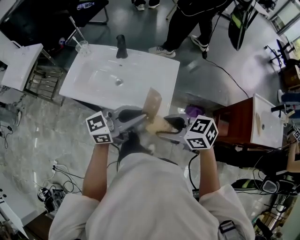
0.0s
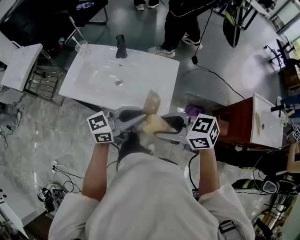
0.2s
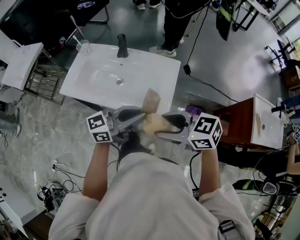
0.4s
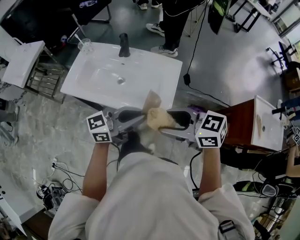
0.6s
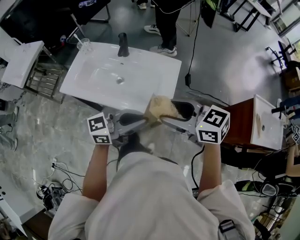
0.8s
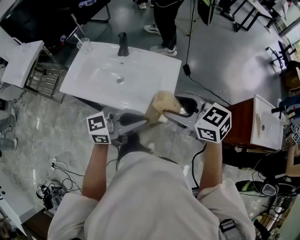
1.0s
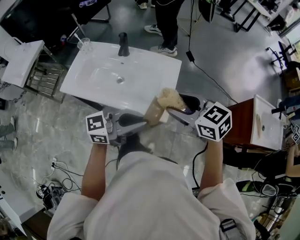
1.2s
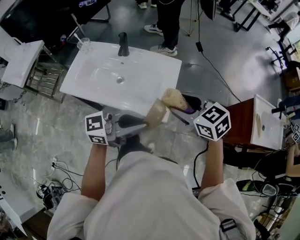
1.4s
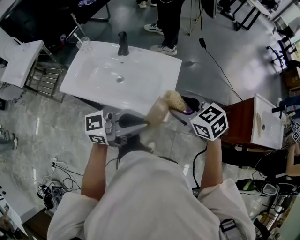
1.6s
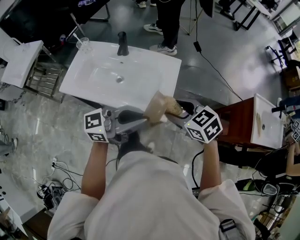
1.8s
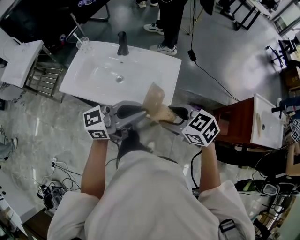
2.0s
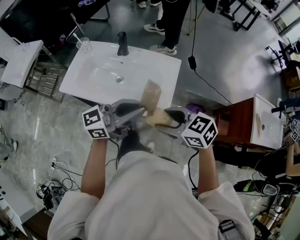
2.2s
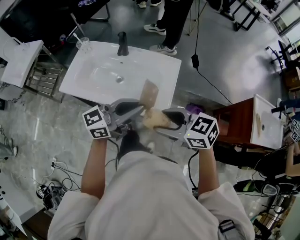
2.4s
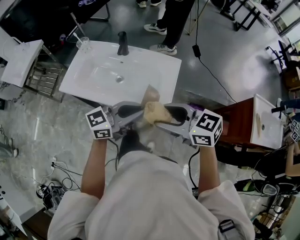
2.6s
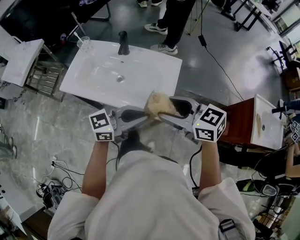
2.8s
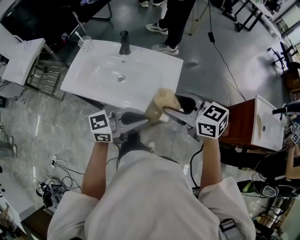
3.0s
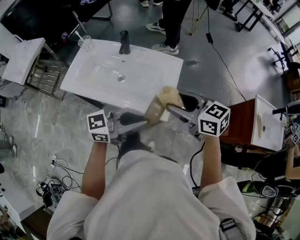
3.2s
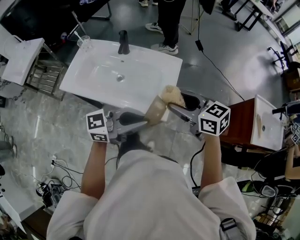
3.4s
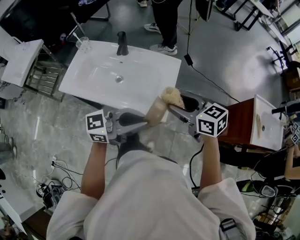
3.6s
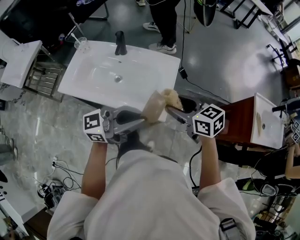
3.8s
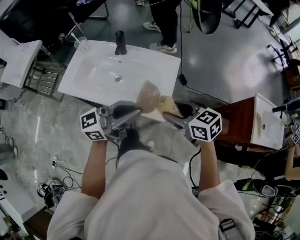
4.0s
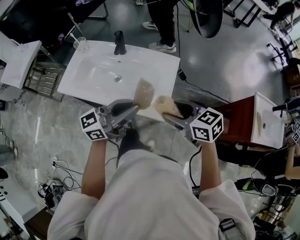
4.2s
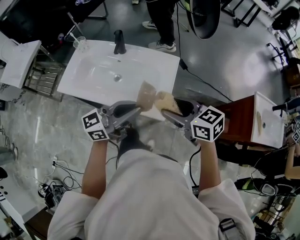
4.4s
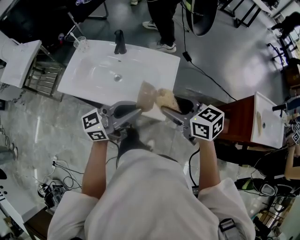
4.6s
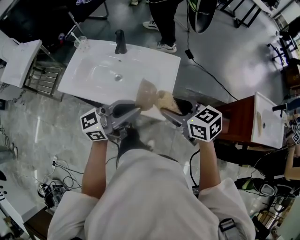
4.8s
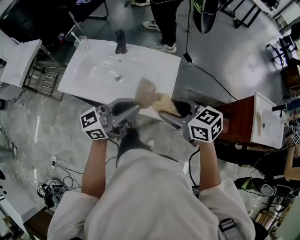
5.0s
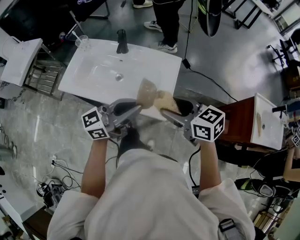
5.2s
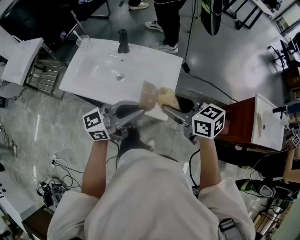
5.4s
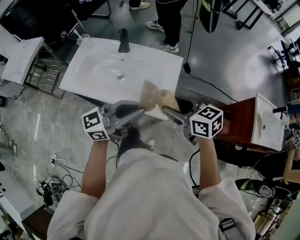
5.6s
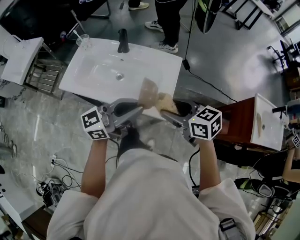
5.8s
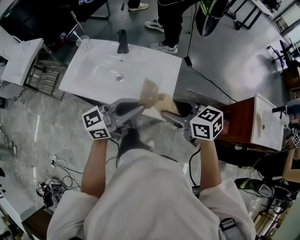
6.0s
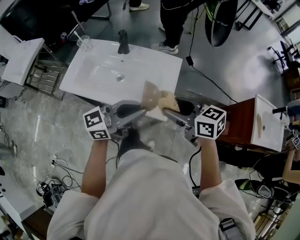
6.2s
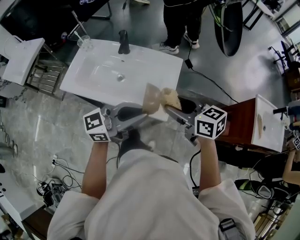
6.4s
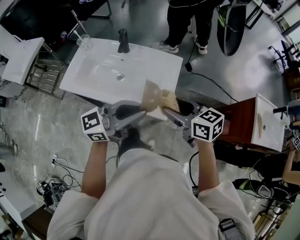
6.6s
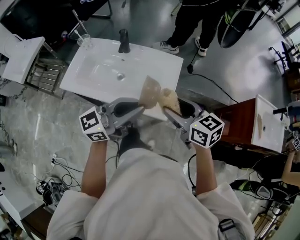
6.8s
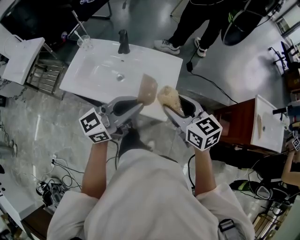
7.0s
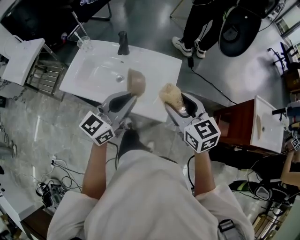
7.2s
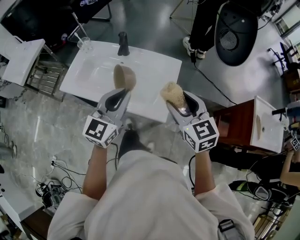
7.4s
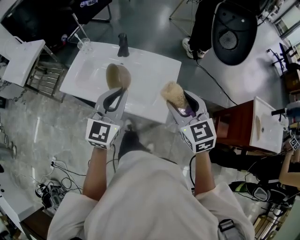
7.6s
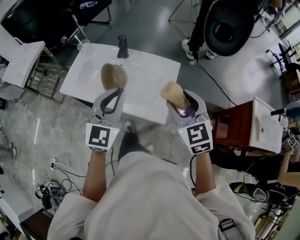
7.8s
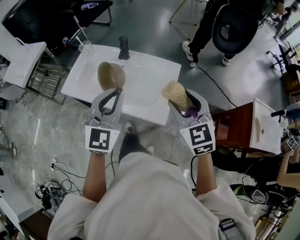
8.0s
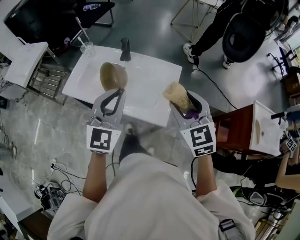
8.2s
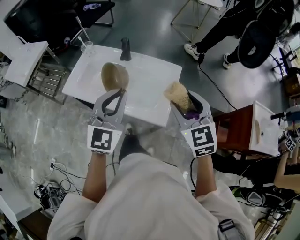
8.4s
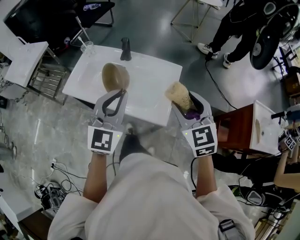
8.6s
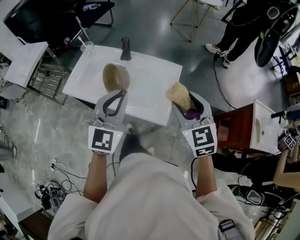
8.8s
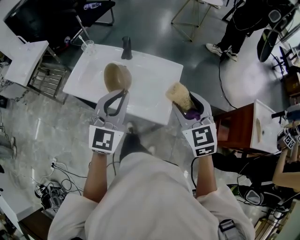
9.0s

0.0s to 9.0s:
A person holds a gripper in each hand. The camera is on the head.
0.0s to 1.6s: The right gripper shifts by approximately 10 cm, and turns by approximately 20 degrees.
1.6s to 3.0s: The right gripper changes its angle by about 20 degrees.
3.0s to 4.4s: The left gripper moves approximately 5 cm.
4.4s to 6.0s: The grippers stay close to where they were, moving slightly.
6.0s to 7.6s: The left gripper moves roughly 10 cm, and turns by roughly 60 degrees, while the right gripper ends up about 5 cm from where it was, and changes its angle by some 40 degrees.
7.6s to 9.0s: The grippers stay close to where they were, moving slightly.

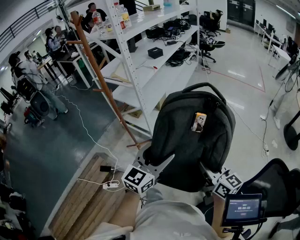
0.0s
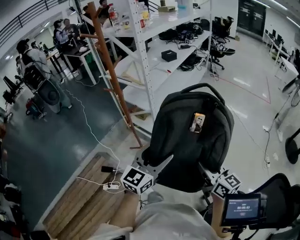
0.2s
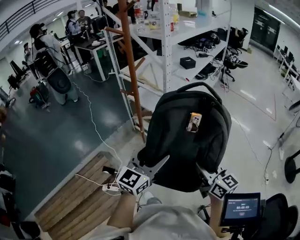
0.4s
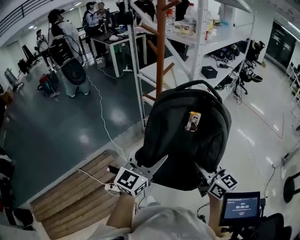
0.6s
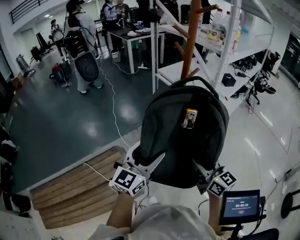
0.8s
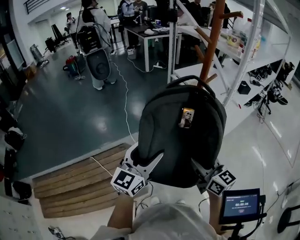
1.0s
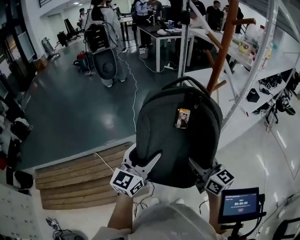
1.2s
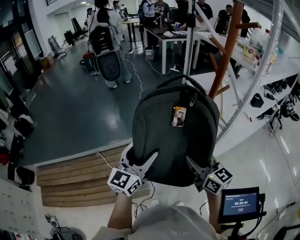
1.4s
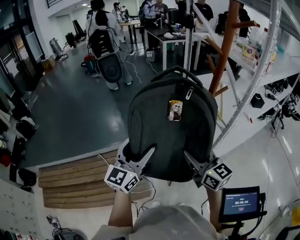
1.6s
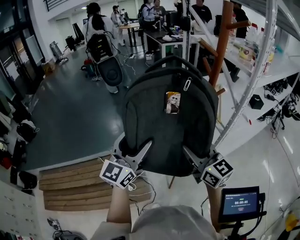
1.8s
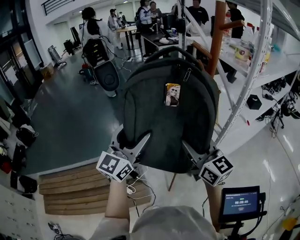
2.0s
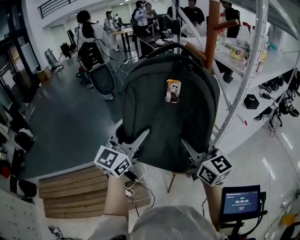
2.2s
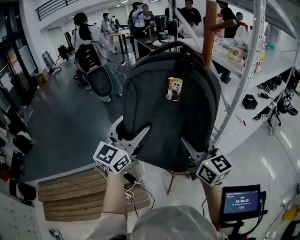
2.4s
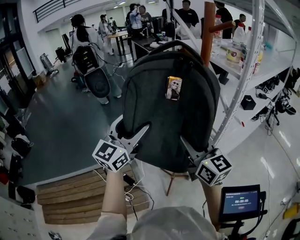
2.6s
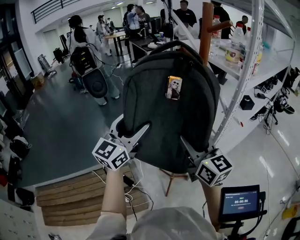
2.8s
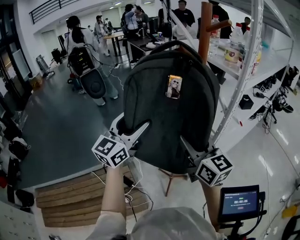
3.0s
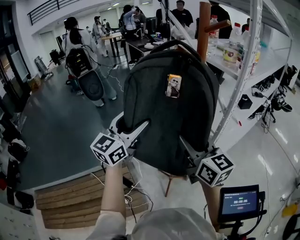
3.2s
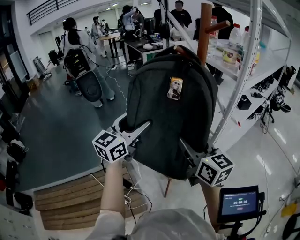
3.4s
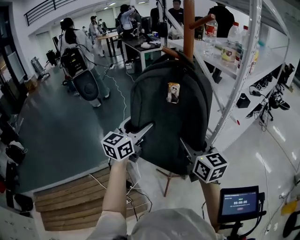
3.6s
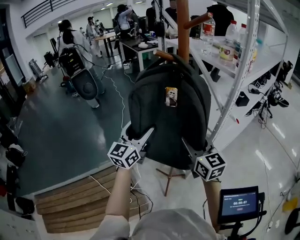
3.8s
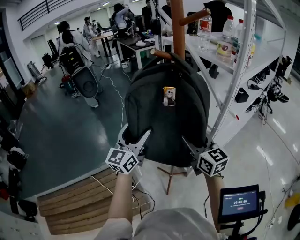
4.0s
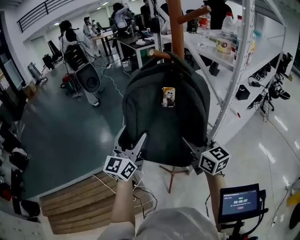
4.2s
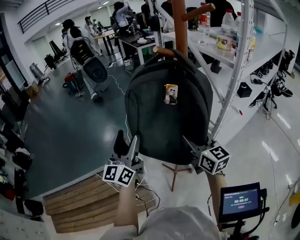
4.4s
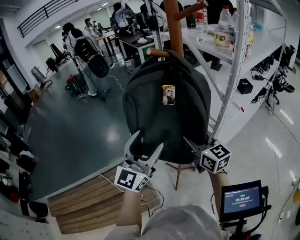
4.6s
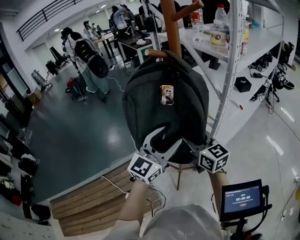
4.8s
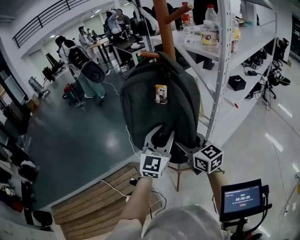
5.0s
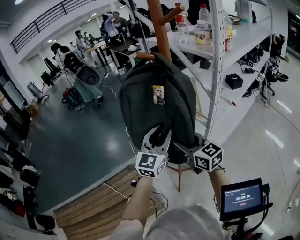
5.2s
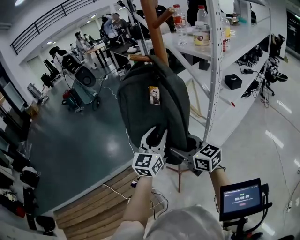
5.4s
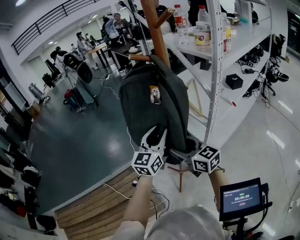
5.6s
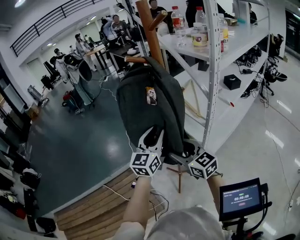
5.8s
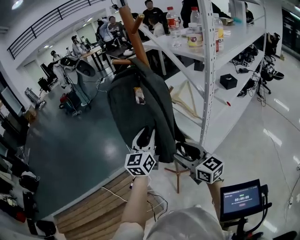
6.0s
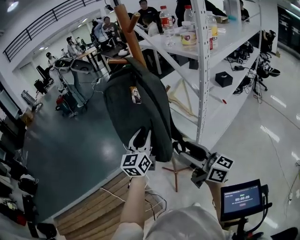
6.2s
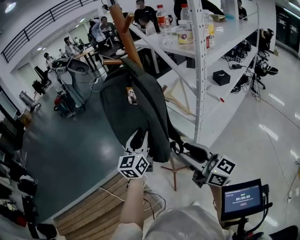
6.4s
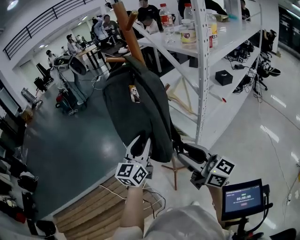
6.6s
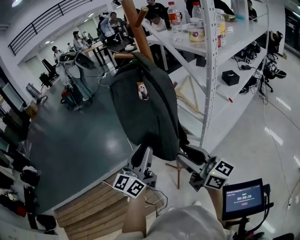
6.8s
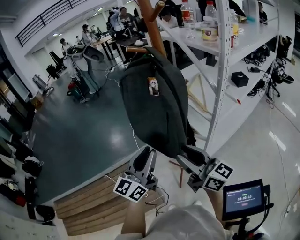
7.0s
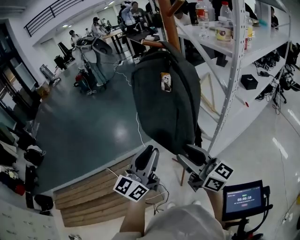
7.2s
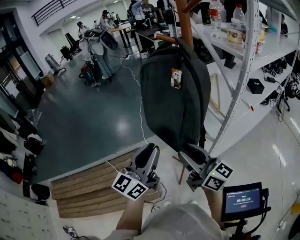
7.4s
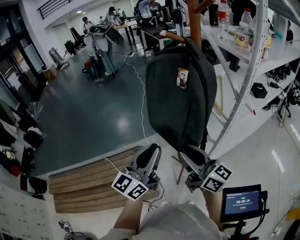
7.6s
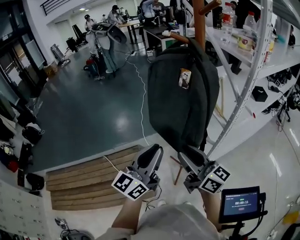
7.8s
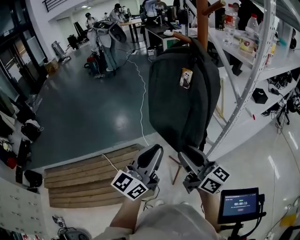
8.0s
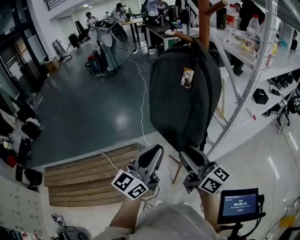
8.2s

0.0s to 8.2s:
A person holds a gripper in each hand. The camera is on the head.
0.0s to 1.6s: The two grippers travel together, some 50 cm. The right gripper turns by approximately 50 degrees; the left gripper turns by roughly 50 degrees.
1.6s to 3.2s: The right gripper heads upward and forward, covering approximately 10 cm, while the left gripper is displaced forward and upward by about 15 cm.
3.2s to 5.0s: The right gripper heads downward, covering approximately 10 cm. Meanwhile the left gripper shifts roughly 15 cm to the right and downward, and closes.
5.0s to 6.6s: The left gripper moves roughly 5 cm, and turns by about 20 degrees, while the right gripper goes about 10 cm backward, and rotates roughly 20 degrees.
6.6s to 8.2s: The right gripper goes approximately 10 cm to the left, while the left gripper heads backward and to the left, covering approximately 15 cm.

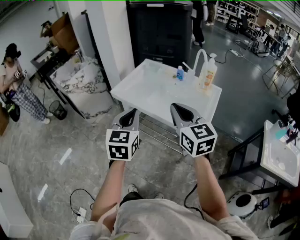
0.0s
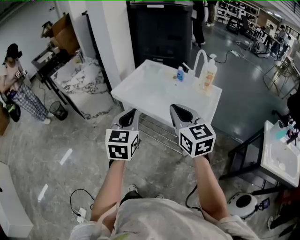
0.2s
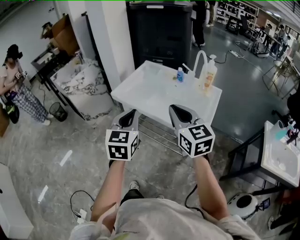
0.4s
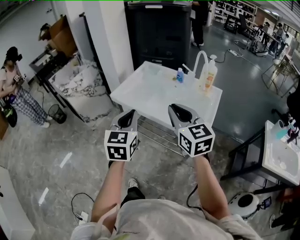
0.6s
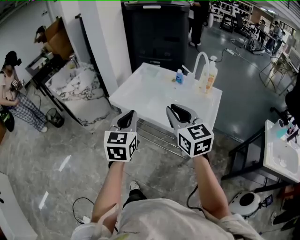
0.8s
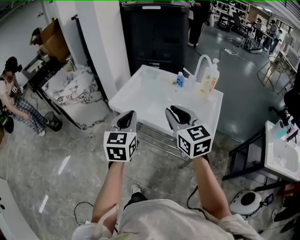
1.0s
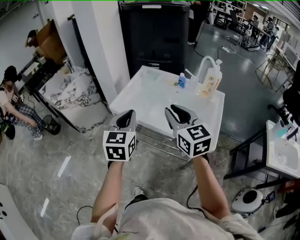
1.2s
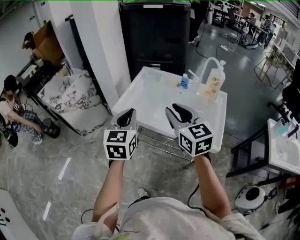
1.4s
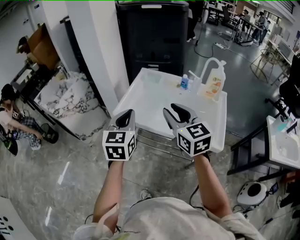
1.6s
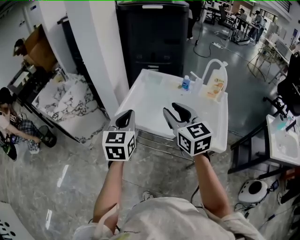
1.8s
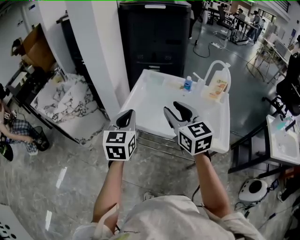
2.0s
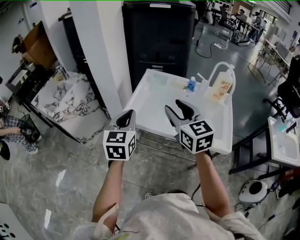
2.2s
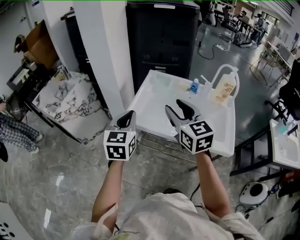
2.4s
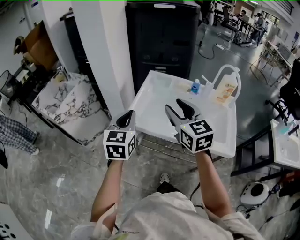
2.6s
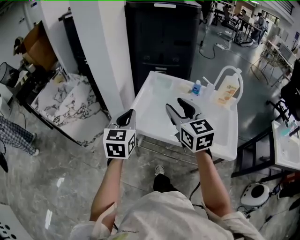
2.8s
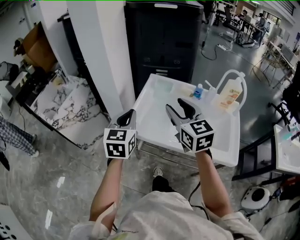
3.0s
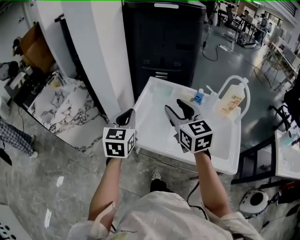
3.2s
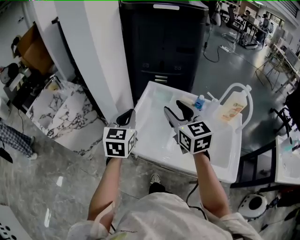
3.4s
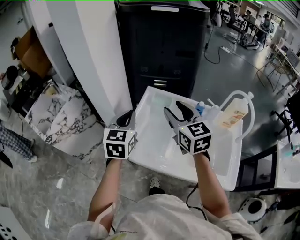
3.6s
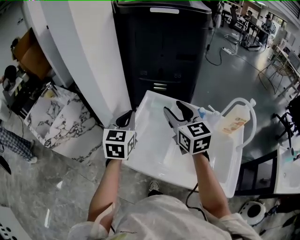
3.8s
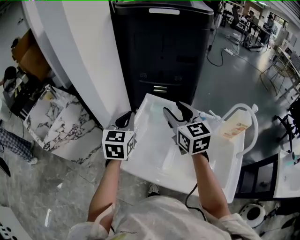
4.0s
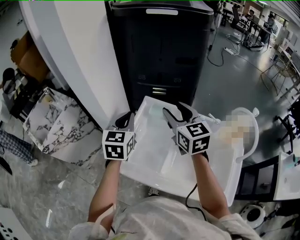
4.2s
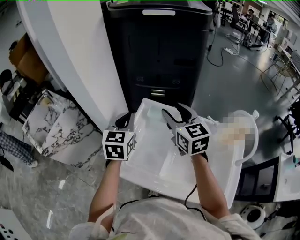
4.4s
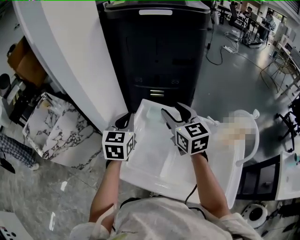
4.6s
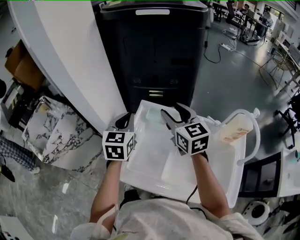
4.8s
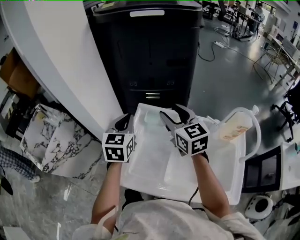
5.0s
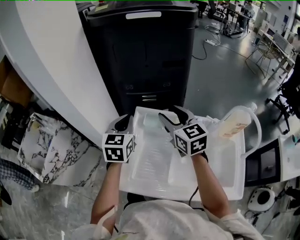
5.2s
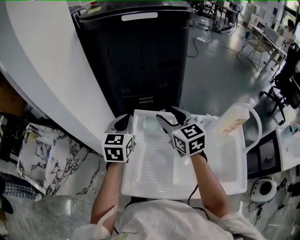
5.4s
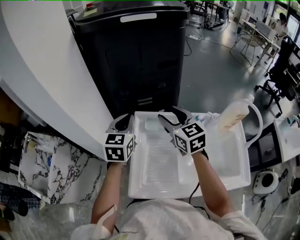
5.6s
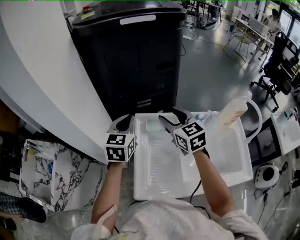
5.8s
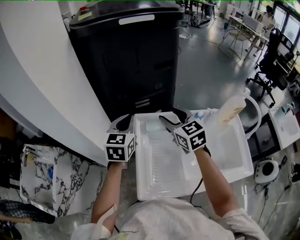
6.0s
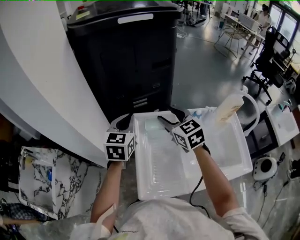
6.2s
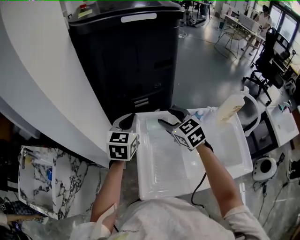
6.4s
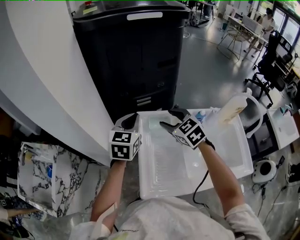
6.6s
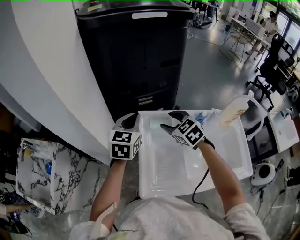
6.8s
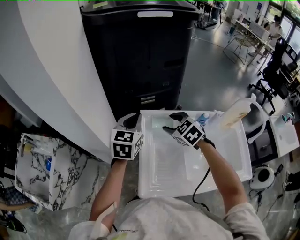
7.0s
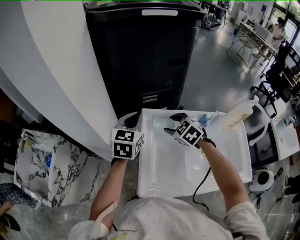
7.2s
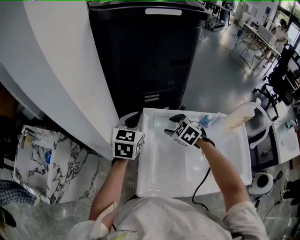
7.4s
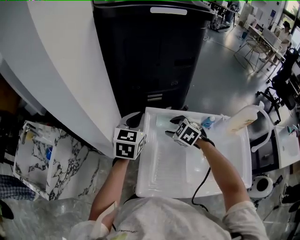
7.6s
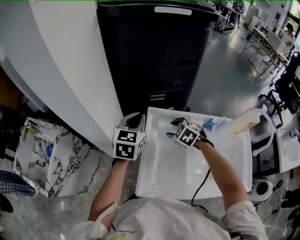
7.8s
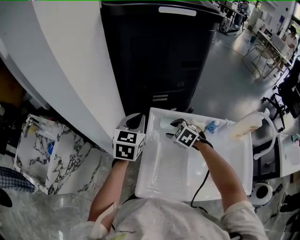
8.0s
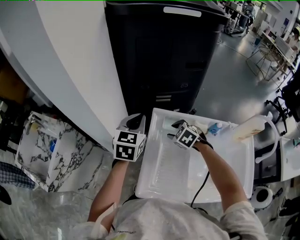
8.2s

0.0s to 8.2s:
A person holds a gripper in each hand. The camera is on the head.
0.0s to 1.6s: Both grippers move forward and to the left, approximately 20 cm. The right gripper opens.
1.6s to 3.2s: Both grippers move forward, some 20 cm.
3.2s to 5.0s: Both grippers travel together forward, roughly 20 cm.
5.0s to 6.6s: The left gripper heads forward, covering roughly 5 cm, and swivels some 20 degrees, while the right gripper shifts approximately 10 cm downward and to the left, and changes its angle by some 30 degrees.
6.6s to 8.2s: The right gripper travels downward by roughly 15 cm, and changes its angle by roughly 30 degrees.
